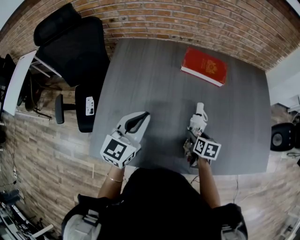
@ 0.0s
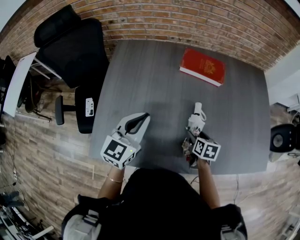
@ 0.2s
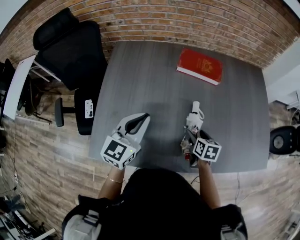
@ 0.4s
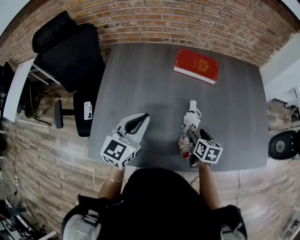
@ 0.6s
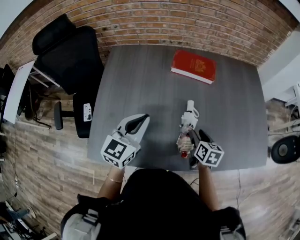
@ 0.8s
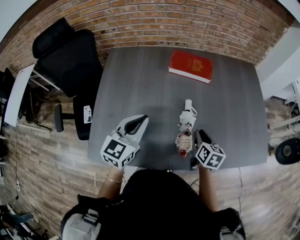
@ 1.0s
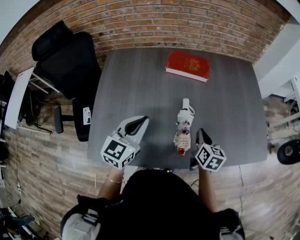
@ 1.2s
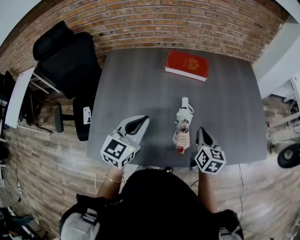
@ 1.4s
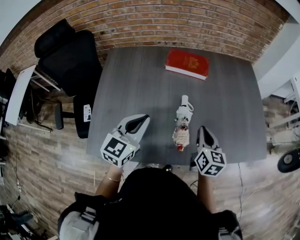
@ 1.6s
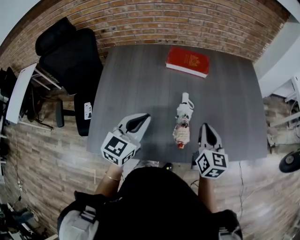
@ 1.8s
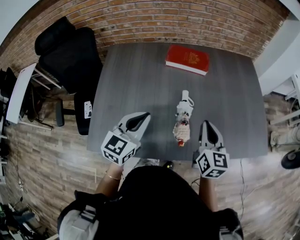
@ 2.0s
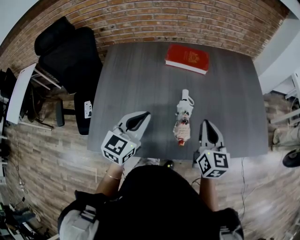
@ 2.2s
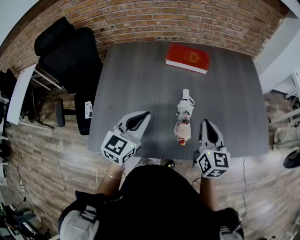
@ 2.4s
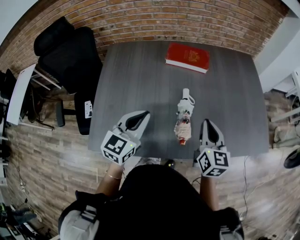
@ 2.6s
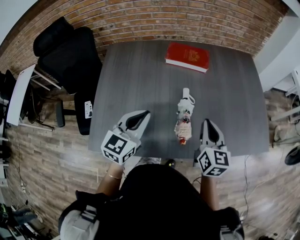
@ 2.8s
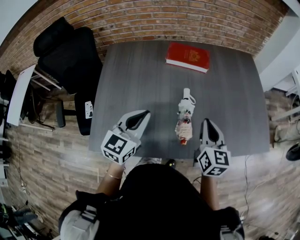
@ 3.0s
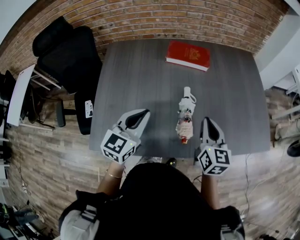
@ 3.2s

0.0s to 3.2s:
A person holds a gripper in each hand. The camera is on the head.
0.0s to 1.6s: The right gripper moves upward, approximately 15 cm, changes its angle by some 30 degrees, and closes up. Meanwhile the left gripper travels to the right by some 10 cm.
1.6s to 3.2s: The right gripper changes place by approximately 5 cm.

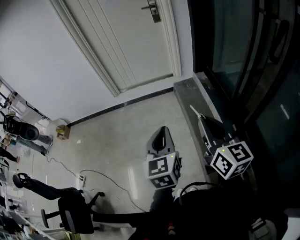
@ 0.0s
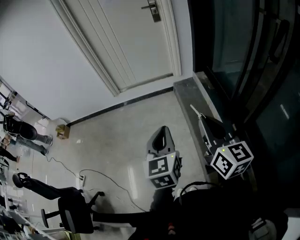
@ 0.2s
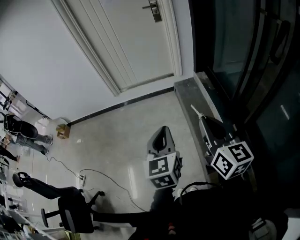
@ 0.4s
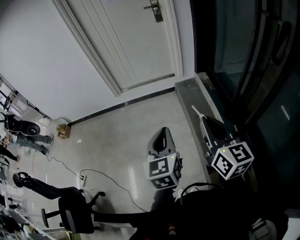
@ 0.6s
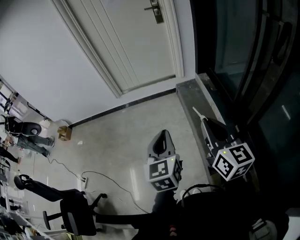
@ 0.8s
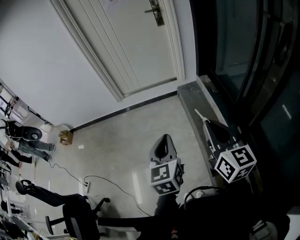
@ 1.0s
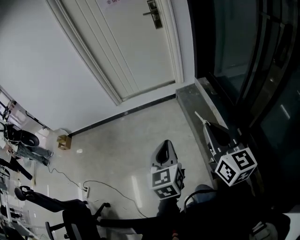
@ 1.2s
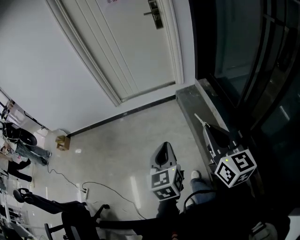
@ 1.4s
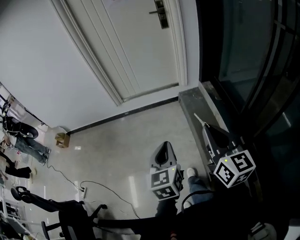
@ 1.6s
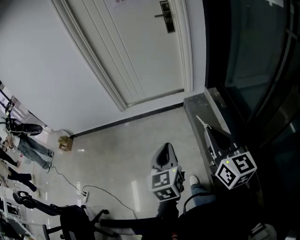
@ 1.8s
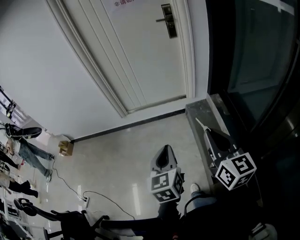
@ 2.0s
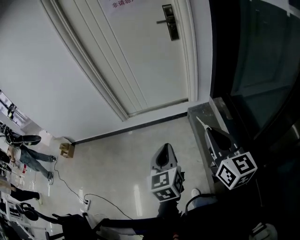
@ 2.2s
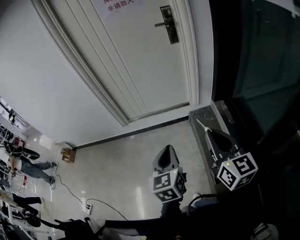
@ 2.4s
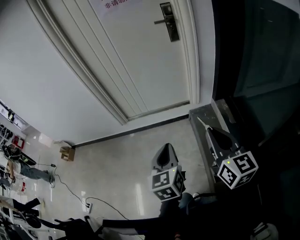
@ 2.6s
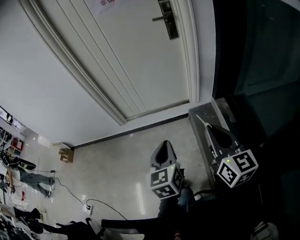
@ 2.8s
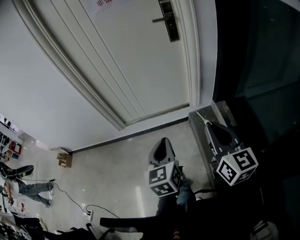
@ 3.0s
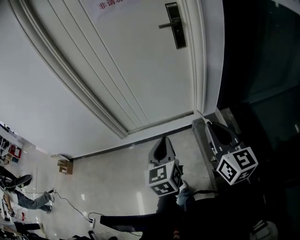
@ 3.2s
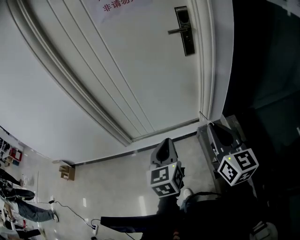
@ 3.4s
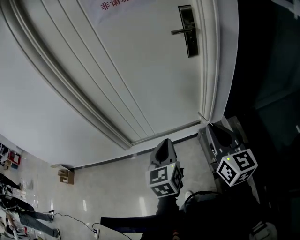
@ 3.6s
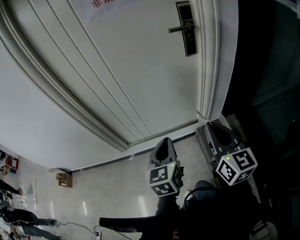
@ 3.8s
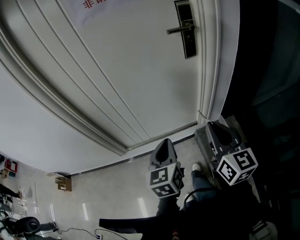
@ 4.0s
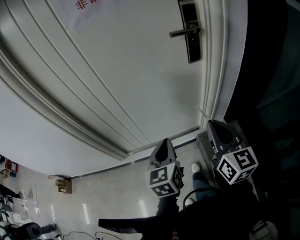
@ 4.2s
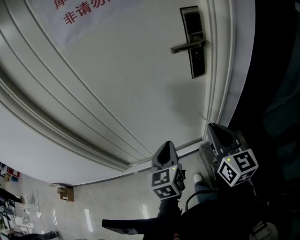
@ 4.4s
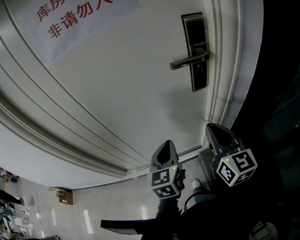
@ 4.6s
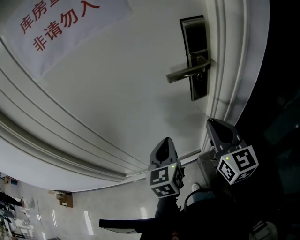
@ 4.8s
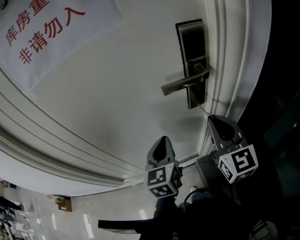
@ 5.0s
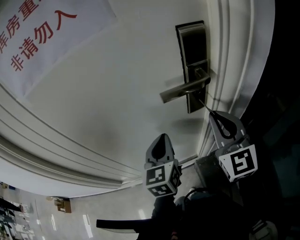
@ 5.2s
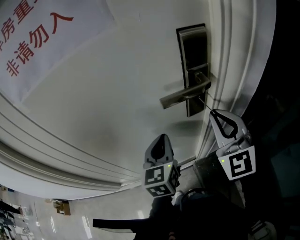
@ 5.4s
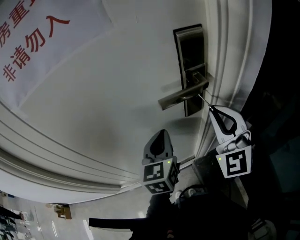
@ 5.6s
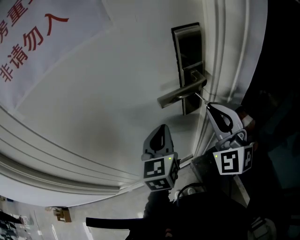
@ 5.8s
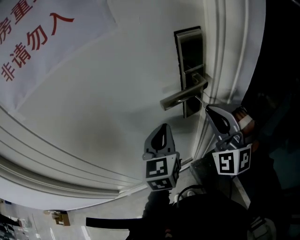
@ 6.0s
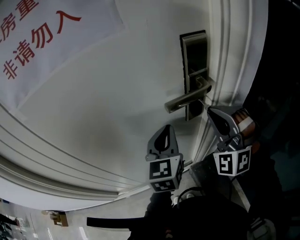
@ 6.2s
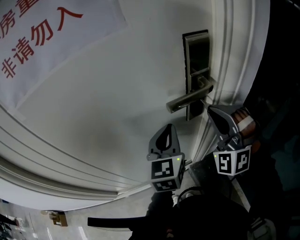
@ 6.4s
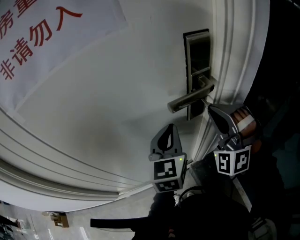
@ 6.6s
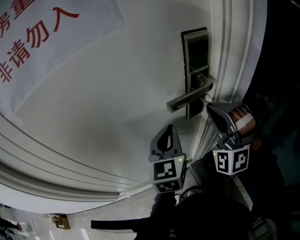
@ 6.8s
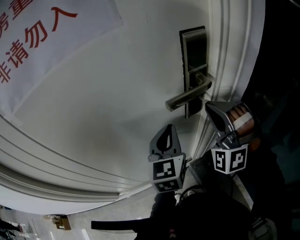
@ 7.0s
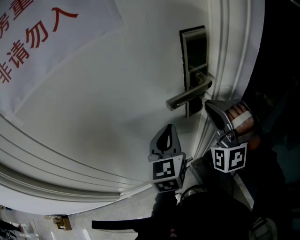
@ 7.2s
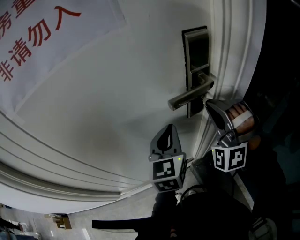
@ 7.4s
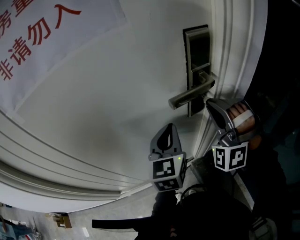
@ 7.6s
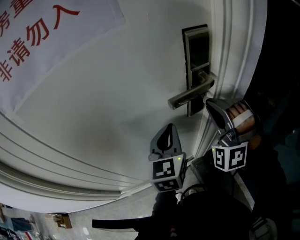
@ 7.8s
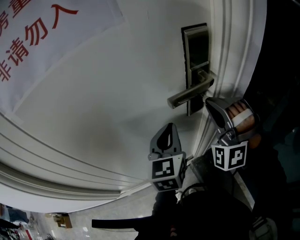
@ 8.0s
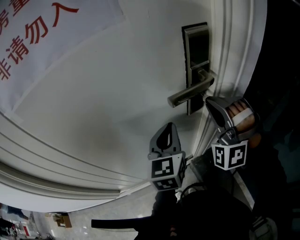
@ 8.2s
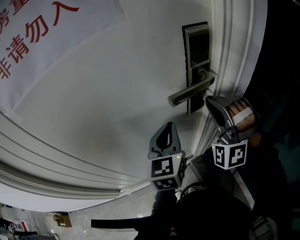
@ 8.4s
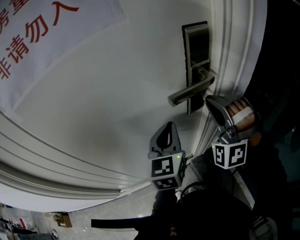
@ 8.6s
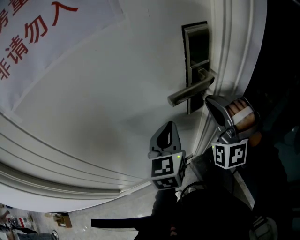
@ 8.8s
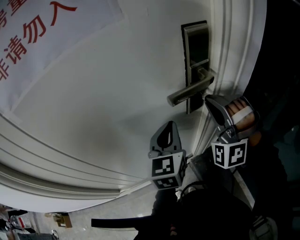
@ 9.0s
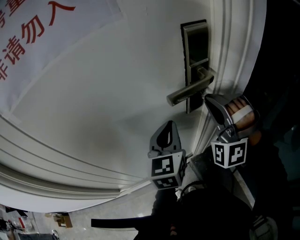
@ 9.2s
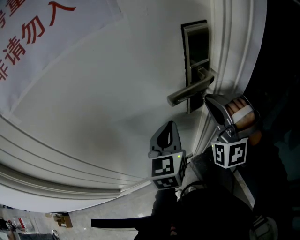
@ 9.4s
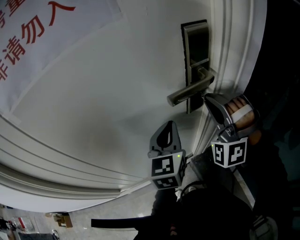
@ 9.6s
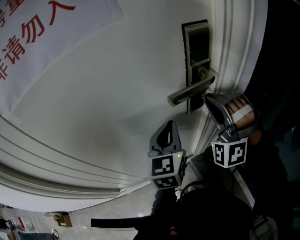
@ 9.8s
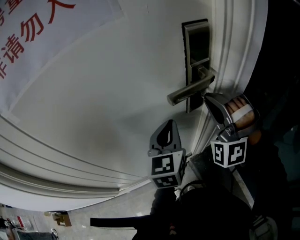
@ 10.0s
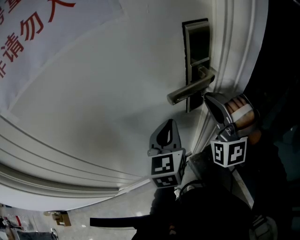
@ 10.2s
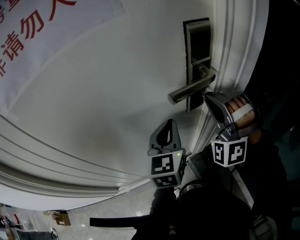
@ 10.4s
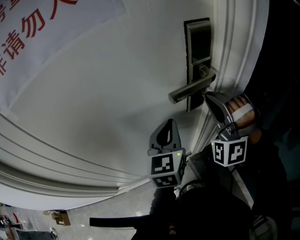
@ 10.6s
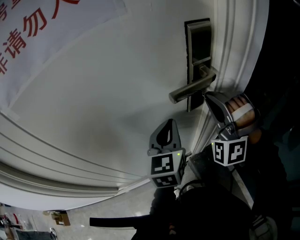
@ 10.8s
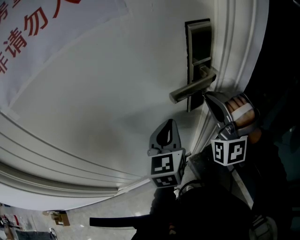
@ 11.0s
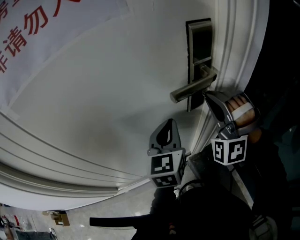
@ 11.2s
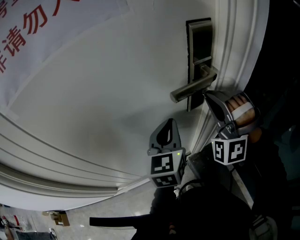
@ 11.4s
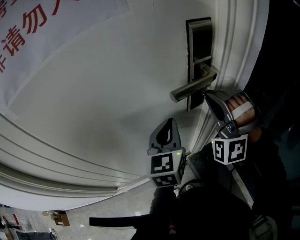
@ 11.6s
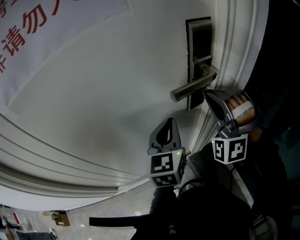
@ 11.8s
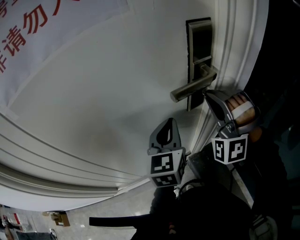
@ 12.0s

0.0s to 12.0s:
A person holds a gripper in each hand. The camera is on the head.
0.0s to 1.6s: The left gripper changes place by about 10 cm.
1.6s to 3.0s: The left gripper ends up some 40 cm from where it was.
3.0s to 4.4s: The left gripper changes place by some 40 cm.
4.4s to 6.0s: The left gripper ends up some 25 cm from where it was.

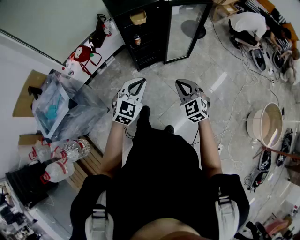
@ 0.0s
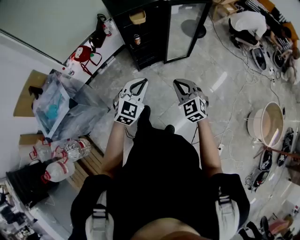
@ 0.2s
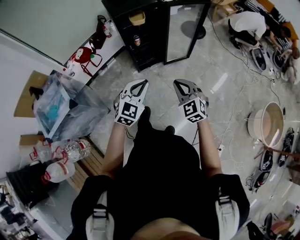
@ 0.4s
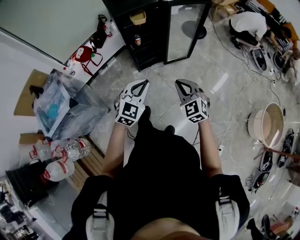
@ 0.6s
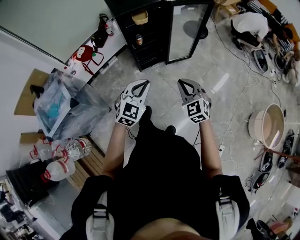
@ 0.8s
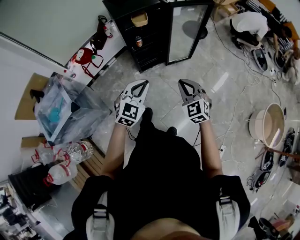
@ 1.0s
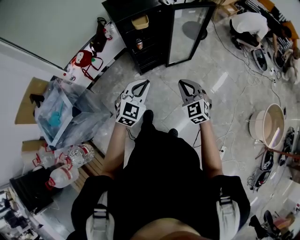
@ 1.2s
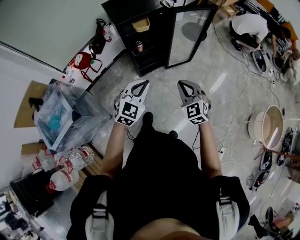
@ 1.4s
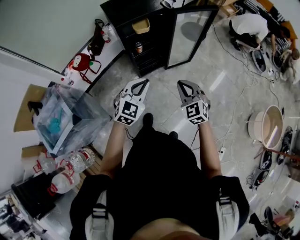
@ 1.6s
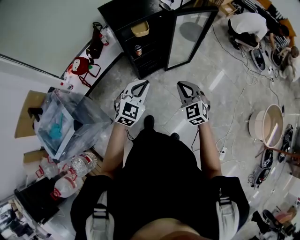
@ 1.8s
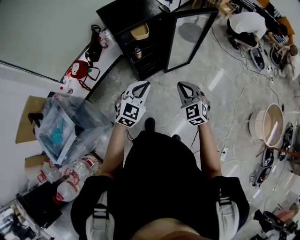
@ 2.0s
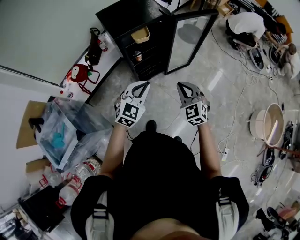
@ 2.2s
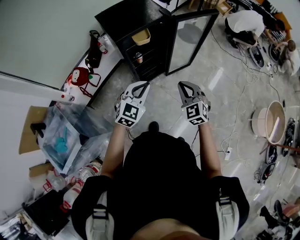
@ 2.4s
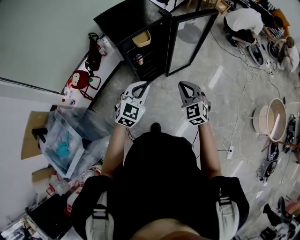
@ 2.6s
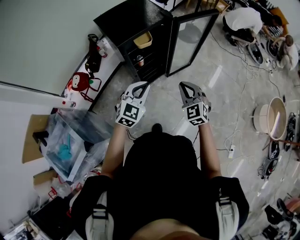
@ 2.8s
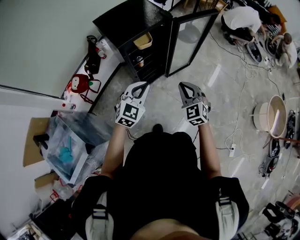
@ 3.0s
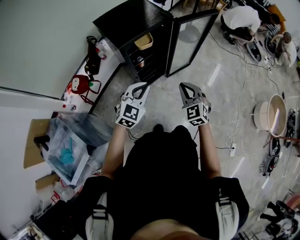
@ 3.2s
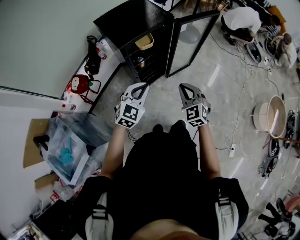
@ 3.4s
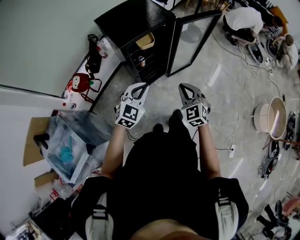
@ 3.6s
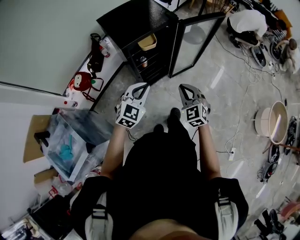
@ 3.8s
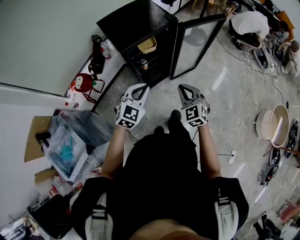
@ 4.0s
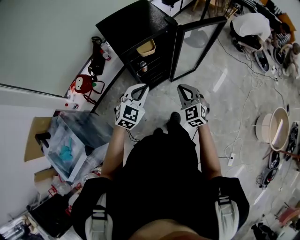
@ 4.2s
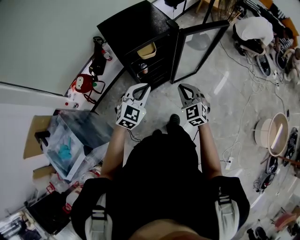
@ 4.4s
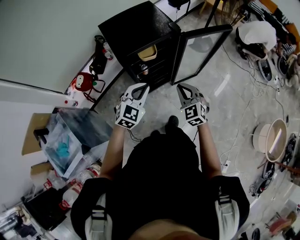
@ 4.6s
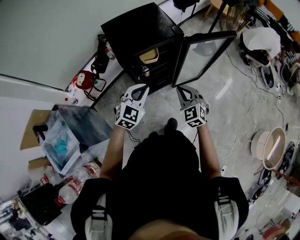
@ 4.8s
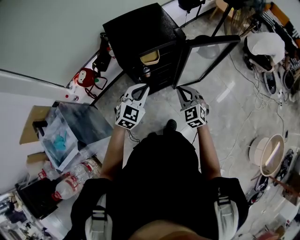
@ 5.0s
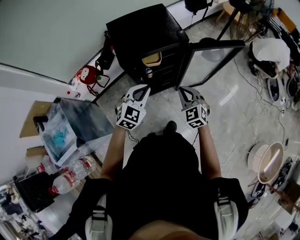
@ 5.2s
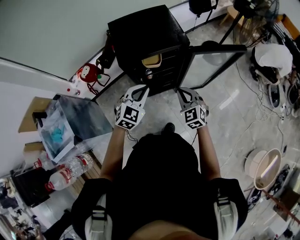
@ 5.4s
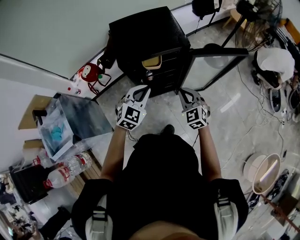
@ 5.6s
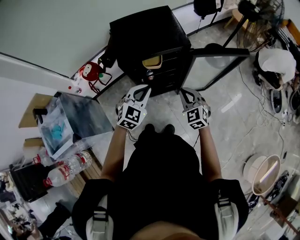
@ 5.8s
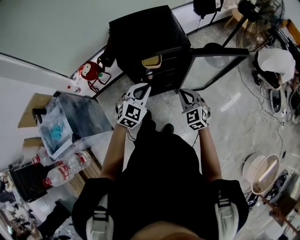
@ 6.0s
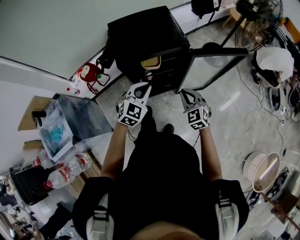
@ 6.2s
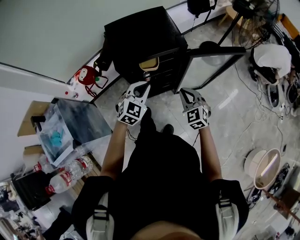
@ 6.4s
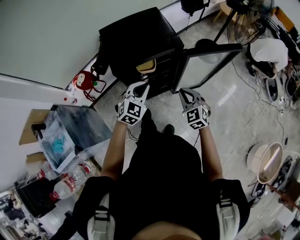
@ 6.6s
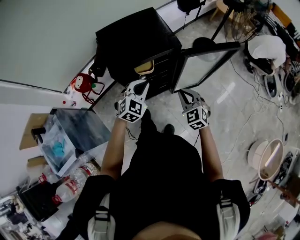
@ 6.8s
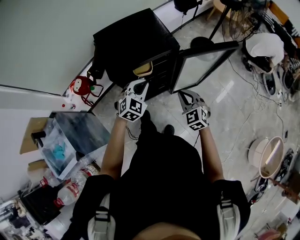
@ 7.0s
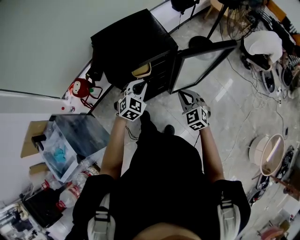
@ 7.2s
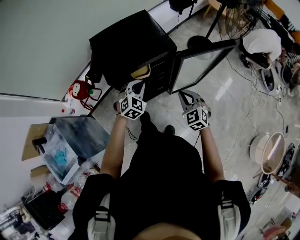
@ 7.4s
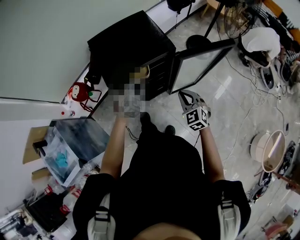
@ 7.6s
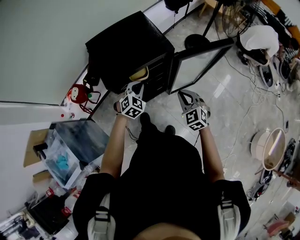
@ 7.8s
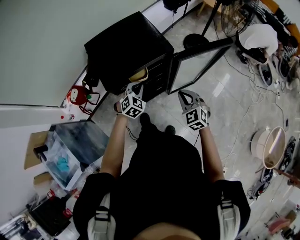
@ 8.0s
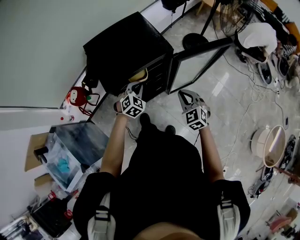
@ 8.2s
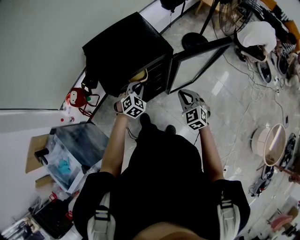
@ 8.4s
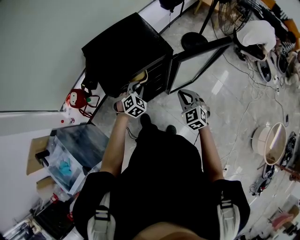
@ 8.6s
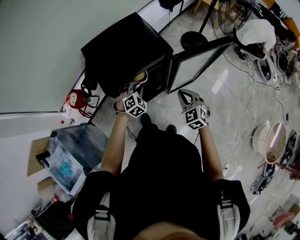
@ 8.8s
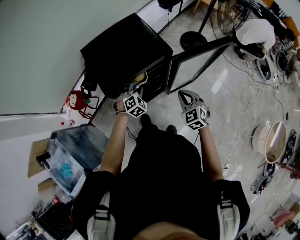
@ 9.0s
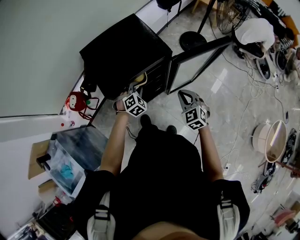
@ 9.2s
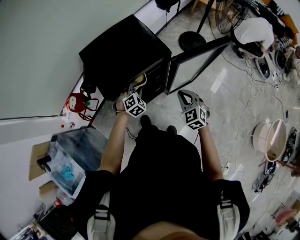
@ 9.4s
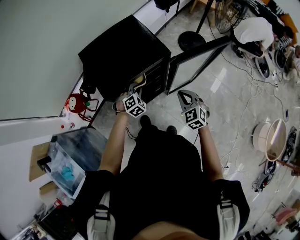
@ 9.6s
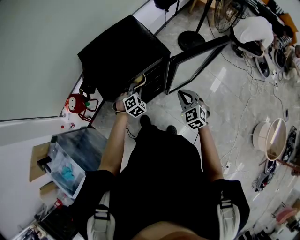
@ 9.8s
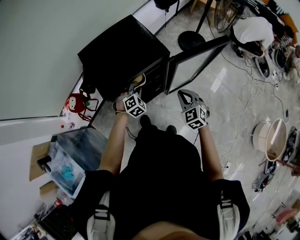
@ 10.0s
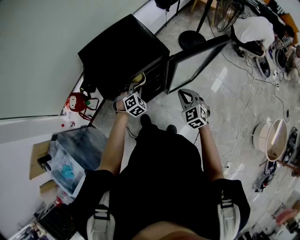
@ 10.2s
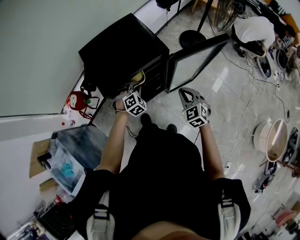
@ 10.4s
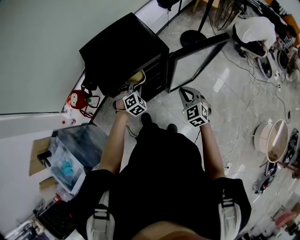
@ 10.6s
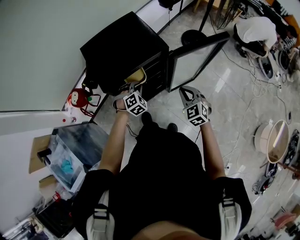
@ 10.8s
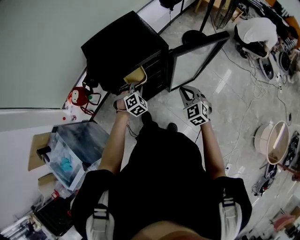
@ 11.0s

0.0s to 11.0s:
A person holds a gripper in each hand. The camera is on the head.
0.0s to 1.6s: Both grippers travel together forward, about 10 cm.
1.6s to 3.2s: The two grippers go approximately 15 cm forward and to the left.
3.2s to 4.8s: Both grippers travel together forward, approximately 10 cm.
4.8s to 6.2s: The two grippers go some 5 cm forward.
6.2s to 7.8s: The left gripper moves forward and downward, approximately 15 cm.
7.8s to 9.4s: The left gripper shifts approximately 5 cm downward.
9.4s to 11.0s: The left gripper moves roughly 5 cm.
